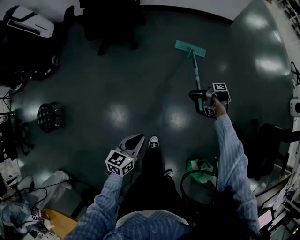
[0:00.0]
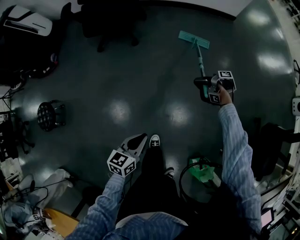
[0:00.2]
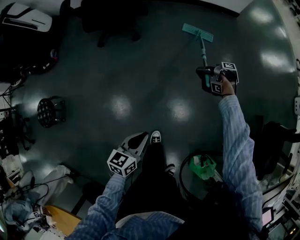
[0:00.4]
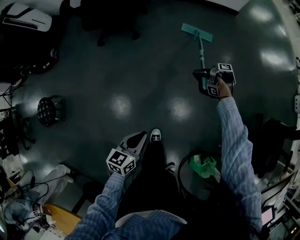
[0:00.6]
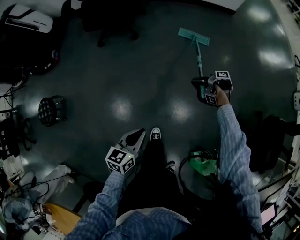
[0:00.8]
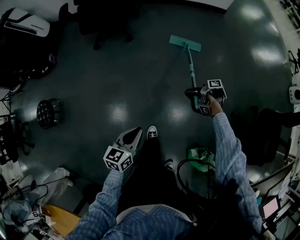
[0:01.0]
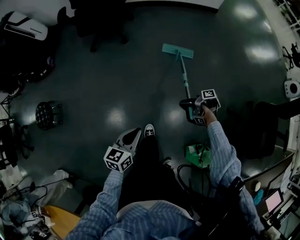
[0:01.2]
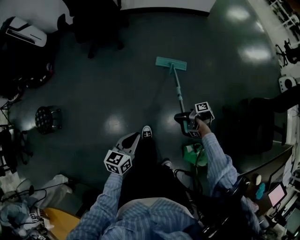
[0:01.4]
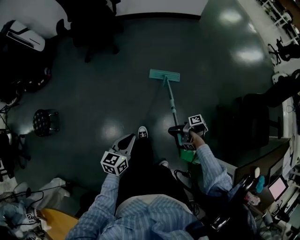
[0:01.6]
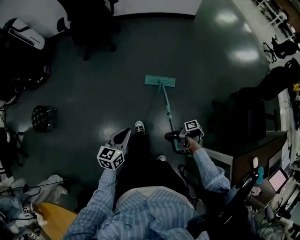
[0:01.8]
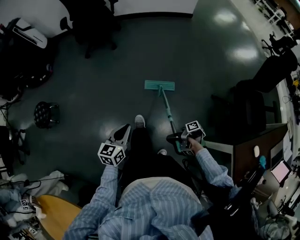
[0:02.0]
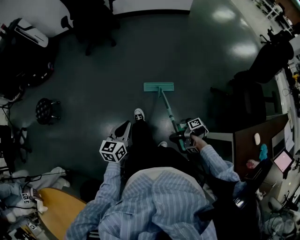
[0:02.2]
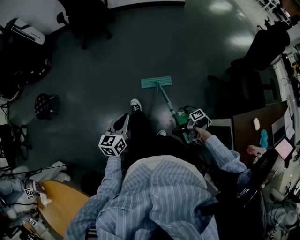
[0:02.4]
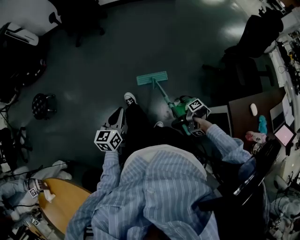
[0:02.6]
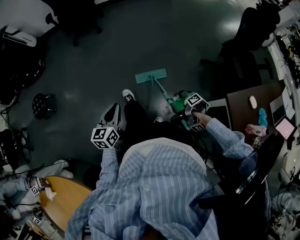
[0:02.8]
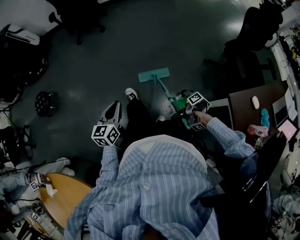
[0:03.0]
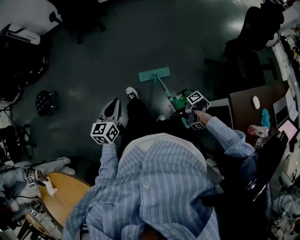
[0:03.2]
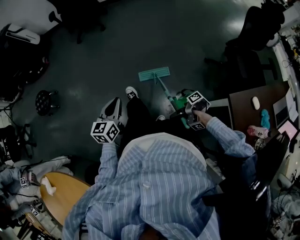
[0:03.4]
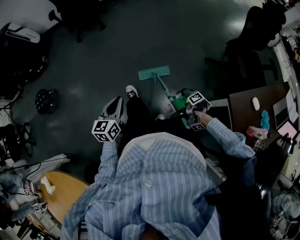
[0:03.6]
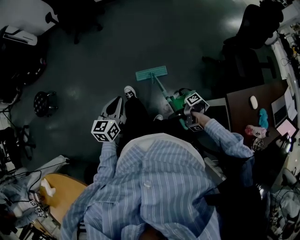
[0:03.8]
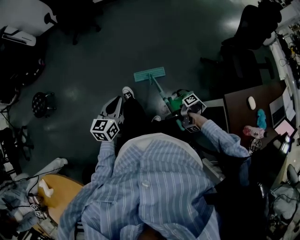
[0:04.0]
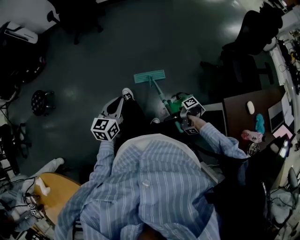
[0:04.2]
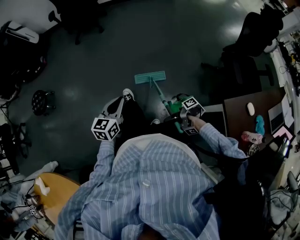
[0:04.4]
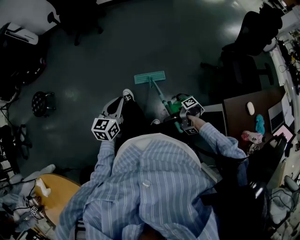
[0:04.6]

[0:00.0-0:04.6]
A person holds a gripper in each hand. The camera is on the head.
0:00.0 to 0:01.6: The left gripper shifts by approximately 20 cm.
0:01.6 to 0:03.0: The left gripper moves some 25 cm.
0:03.0 to 0:04.6: The left gripper ends up about 5 cm from where it was.

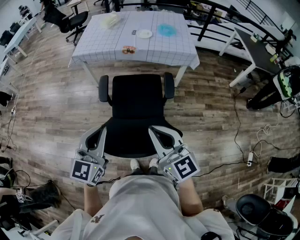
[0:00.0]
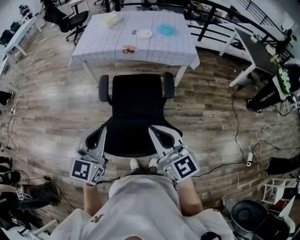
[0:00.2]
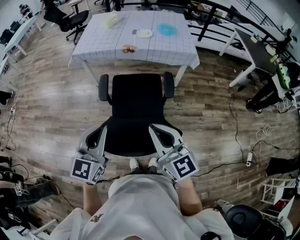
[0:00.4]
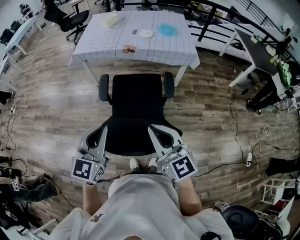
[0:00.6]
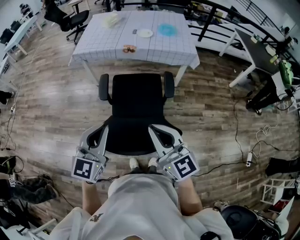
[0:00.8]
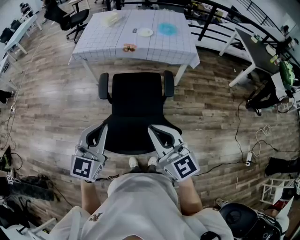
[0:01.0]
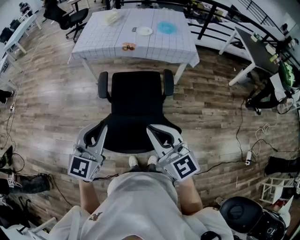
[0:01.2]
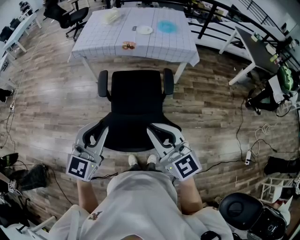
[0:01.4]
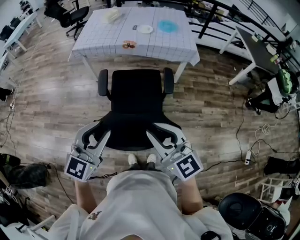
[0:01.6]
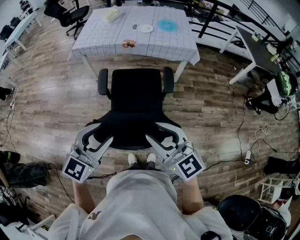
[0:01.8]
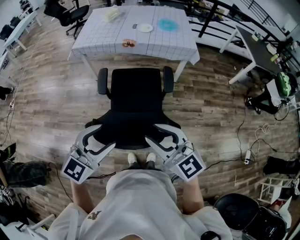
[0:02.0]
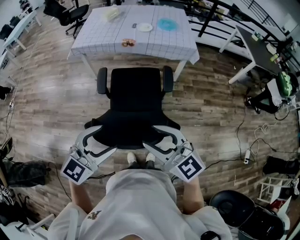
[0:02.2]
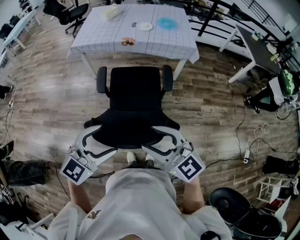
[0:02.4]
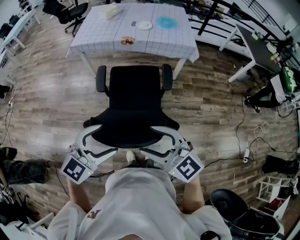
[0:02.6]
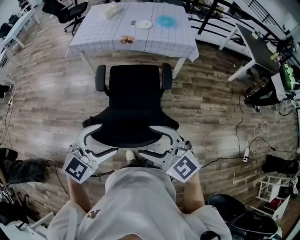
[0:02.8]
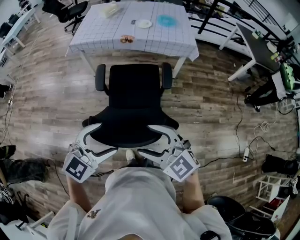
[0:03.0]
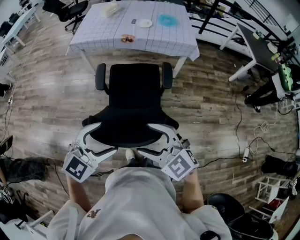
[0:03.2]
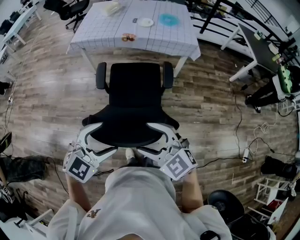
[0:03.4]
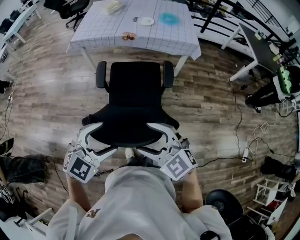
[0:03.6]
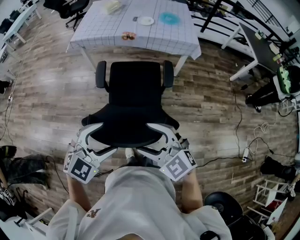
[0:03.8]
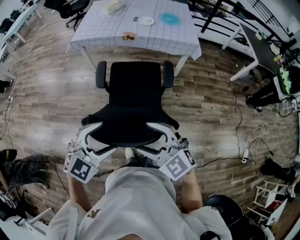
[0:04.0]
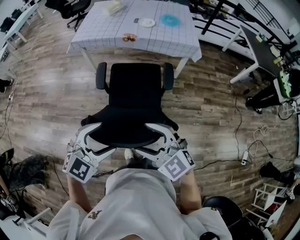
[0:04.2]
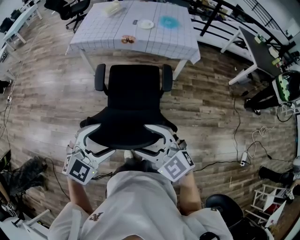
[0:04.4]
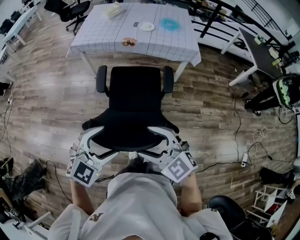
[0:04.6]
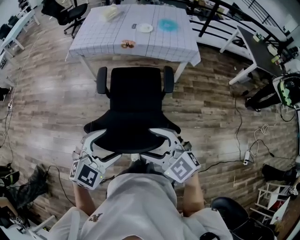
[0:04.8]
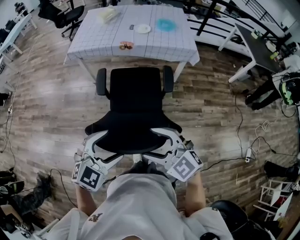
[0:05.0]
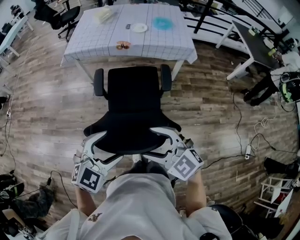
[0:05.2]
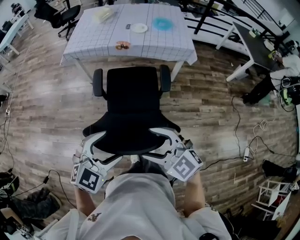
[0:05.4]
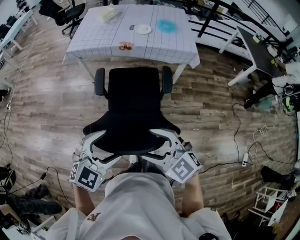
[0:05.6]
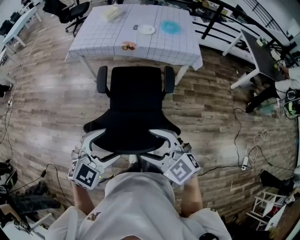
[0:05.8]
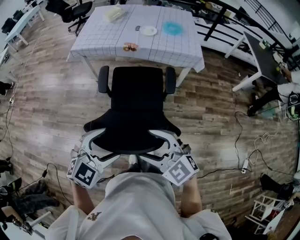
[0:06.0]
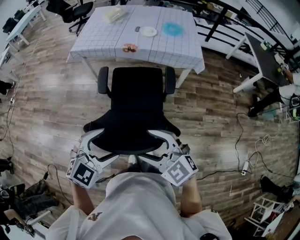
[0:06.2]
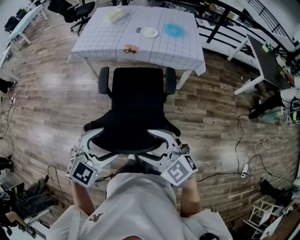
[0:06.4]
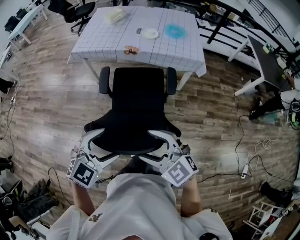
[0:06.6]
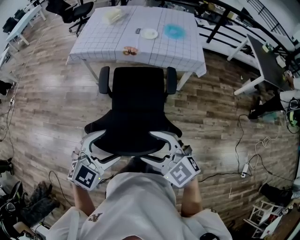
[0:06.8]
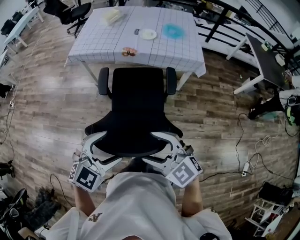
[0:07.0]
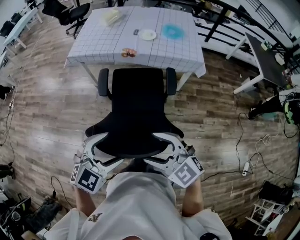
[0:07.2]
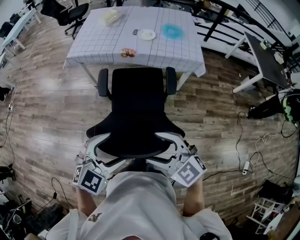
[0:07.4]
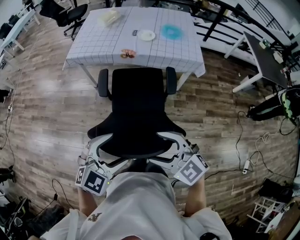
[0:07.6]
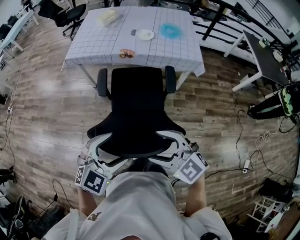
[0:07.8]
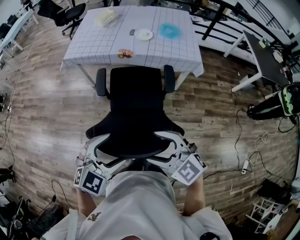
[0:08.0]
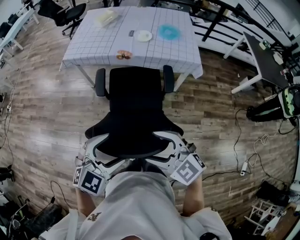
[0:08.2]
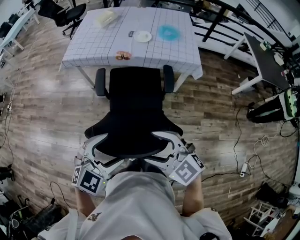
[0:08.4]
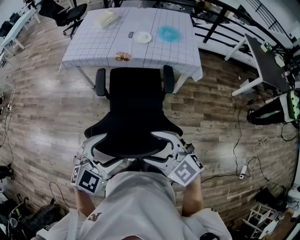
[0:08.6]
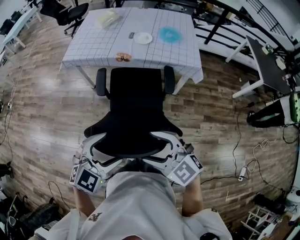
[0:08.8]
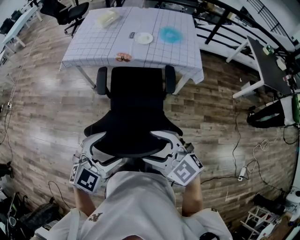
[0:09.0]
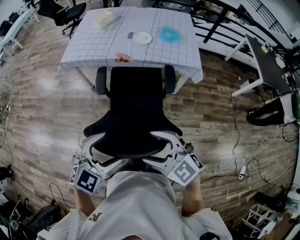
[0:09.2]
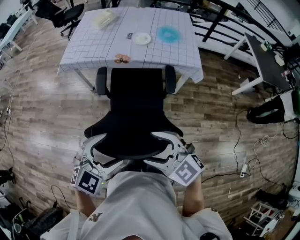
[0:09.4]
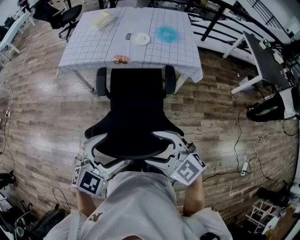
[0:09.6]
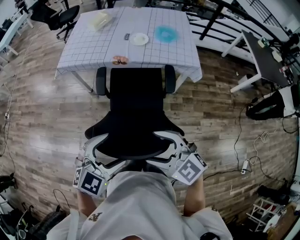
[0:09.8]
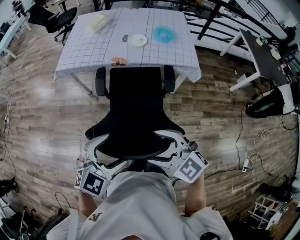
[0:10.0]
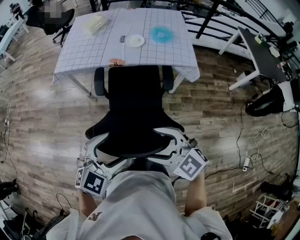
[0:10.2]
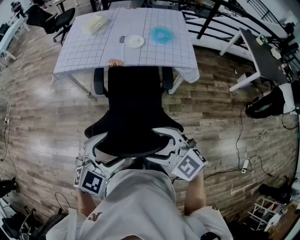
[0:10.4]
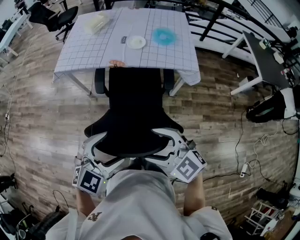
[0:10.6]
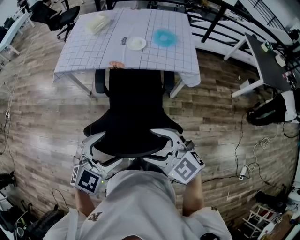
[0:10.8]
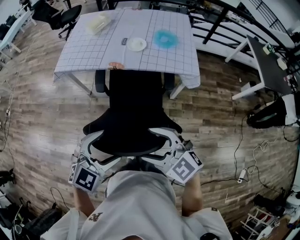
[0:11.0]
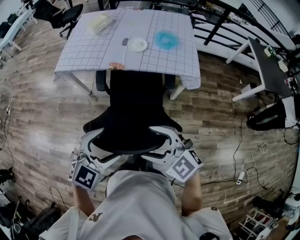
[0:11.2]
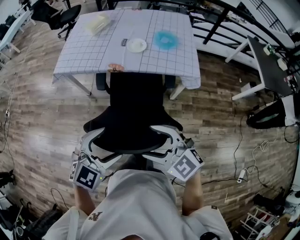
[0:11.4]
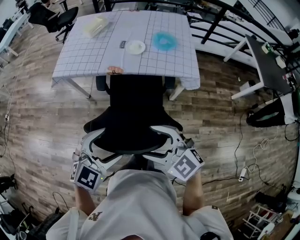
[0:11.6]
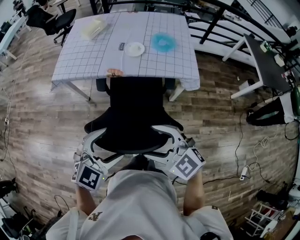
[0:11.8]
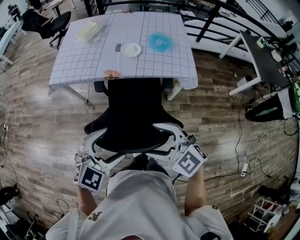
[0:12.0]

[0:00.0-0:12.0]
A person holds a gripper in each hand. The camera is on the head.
0:00.0 to 0:01.6: There are only small adjustments of the grippers.
0:01.6 to 0:03.0: The left gripper shifts by some 5 cm, swivels about 20 degrees, and opens, while the right gripper moves some 5 cm, turns by roughly 20 degrees, and opens.
0:03.0 to 0:04.4: There are only small adjustments of the grippers.
0:04.4 to 0:06.0: Both grippers travel together forward, some 5 cm.
0:06.0 to 0:07.6: Both grippers move forward, some 5 cm.
0:07.6 to 0:09.0: The two grippers go approximately 5 cm forward.
0:09.0 to 0:10.4: The grippers both shift forward by about 5 cm.
0:10.4 to 0:12.0: Both grippers travel together forward, some 10 cm.

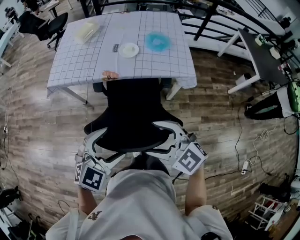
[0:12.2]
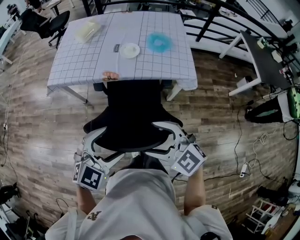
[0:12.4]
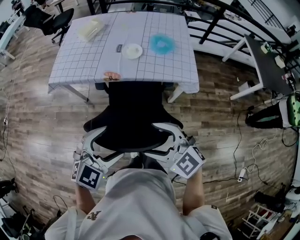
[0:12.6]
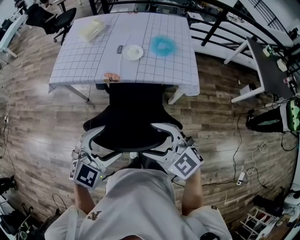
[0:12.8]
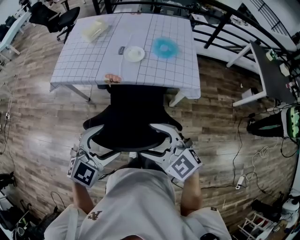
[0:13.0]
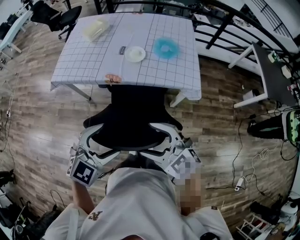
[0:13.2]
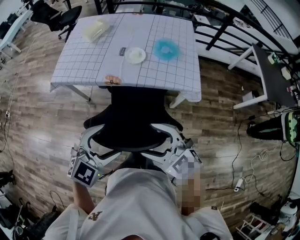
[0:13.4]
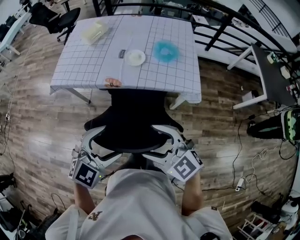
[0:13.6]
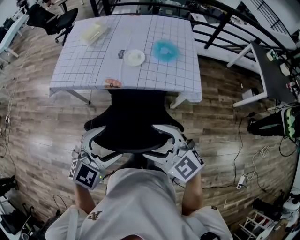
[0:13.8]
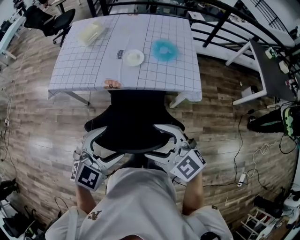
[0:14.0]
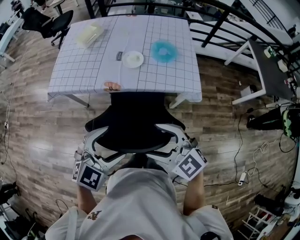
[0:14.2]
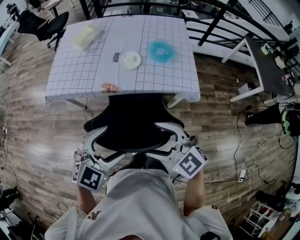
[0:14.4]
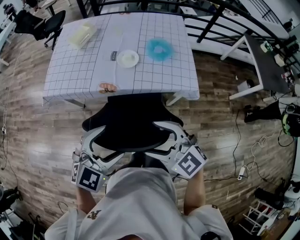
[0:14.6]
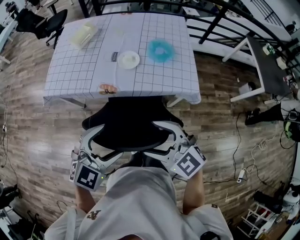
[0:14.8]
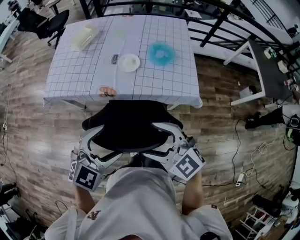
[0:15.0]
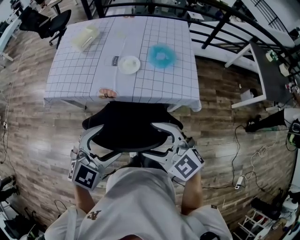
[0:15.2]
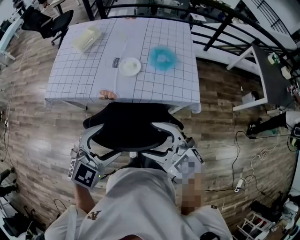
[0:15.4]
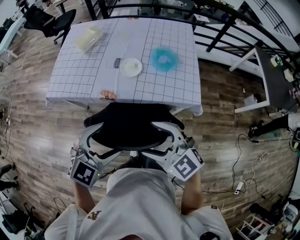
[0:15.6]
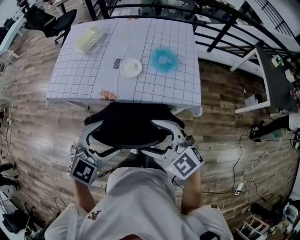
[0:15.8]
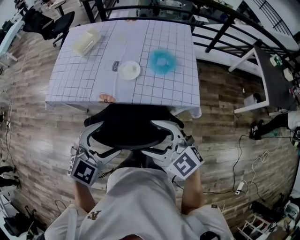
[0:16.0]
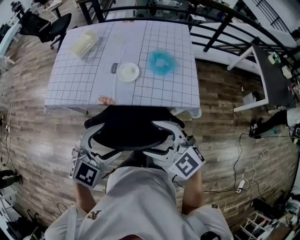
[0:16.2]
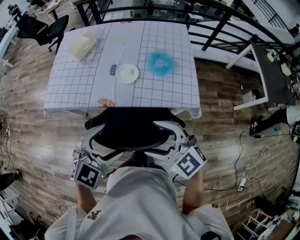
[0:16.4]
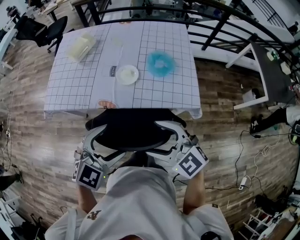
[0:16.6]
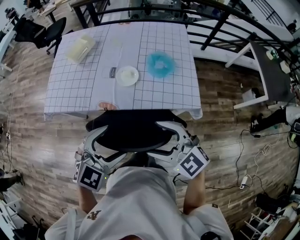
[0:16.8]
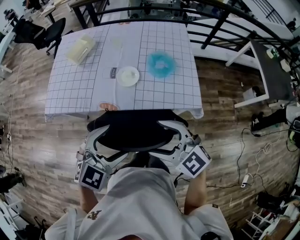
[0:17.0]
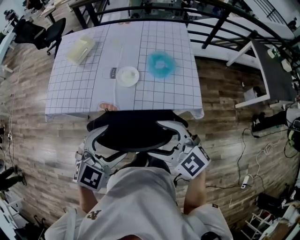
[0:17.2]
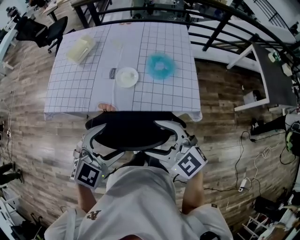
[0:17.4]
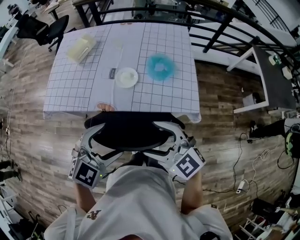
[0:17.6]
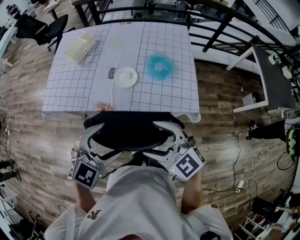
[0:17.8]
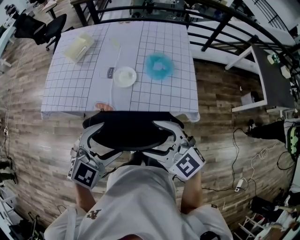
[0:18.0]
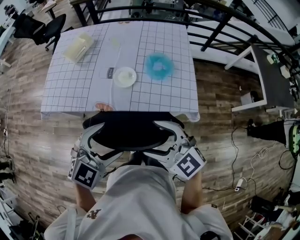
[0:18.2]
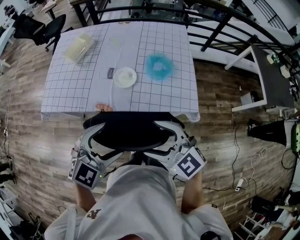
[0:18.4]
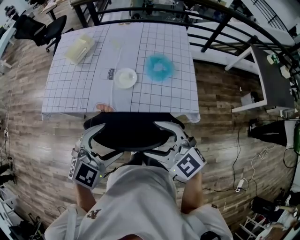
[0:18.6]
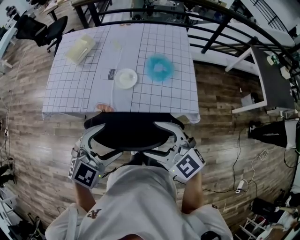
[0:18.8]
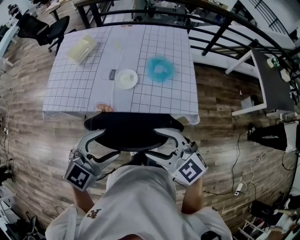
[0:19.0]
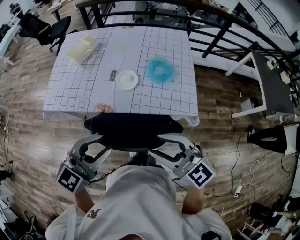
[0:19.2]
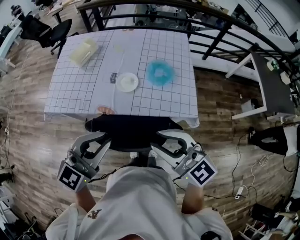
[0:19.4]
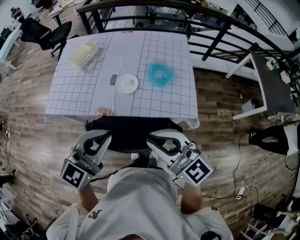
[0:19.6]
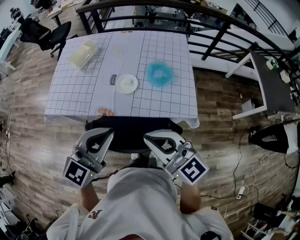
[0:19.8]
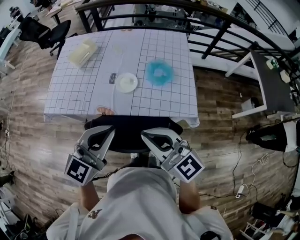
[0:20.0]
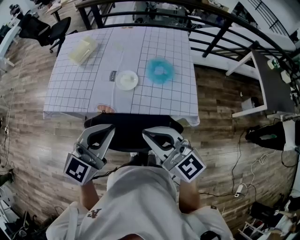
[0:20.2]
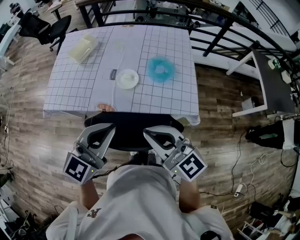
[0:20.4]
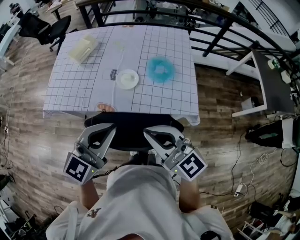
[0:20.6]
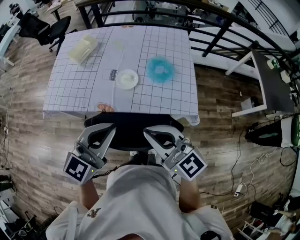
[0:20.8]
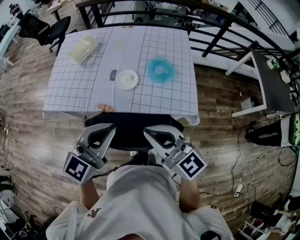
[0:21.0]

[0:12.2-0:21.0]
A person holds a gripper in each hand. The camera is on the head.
0:12.2 to 0:13.6: Both grippers travel together forward, some 5 cm.
0:13.6 to 0:15.2: The two grippers go some 10 cm forward.
0:15.2 to 0:16.6: The two grippers go approximately 5 cm forward.
0:16.6 to 0:18.0: The grippers stay close to where they were, moving slightly.
0:18.0 to 0:19.6: The grippers both shift upward by some 10 cm. The left gripper turns by approximately 30 degrees, and closes up. The right gripper rotates about 20 degrees, and closes.
0:19.6 to 0:21.0: The grippers move only a little.
